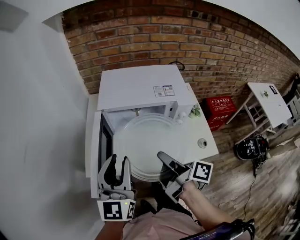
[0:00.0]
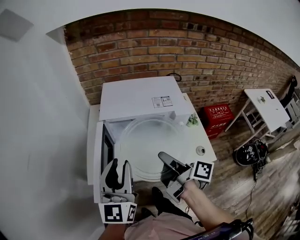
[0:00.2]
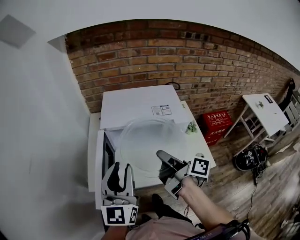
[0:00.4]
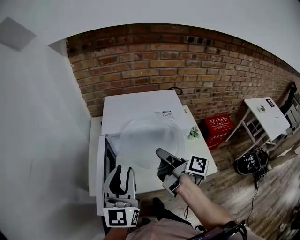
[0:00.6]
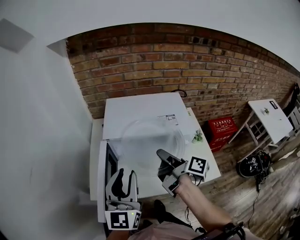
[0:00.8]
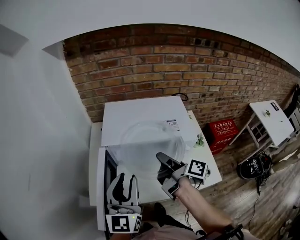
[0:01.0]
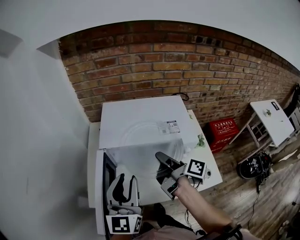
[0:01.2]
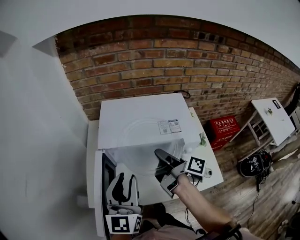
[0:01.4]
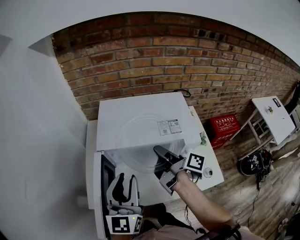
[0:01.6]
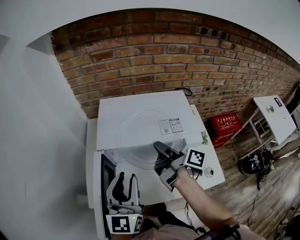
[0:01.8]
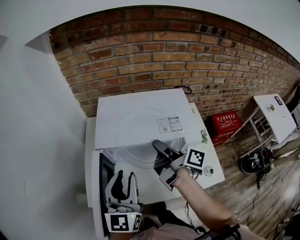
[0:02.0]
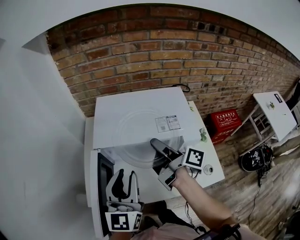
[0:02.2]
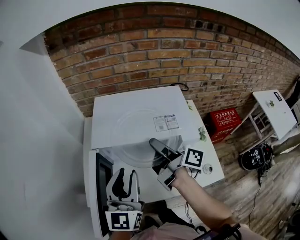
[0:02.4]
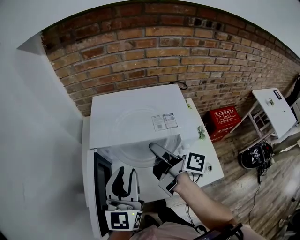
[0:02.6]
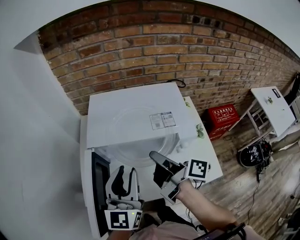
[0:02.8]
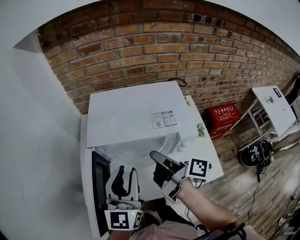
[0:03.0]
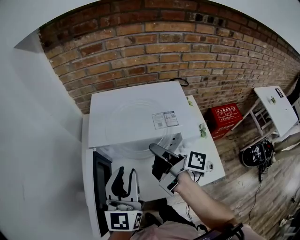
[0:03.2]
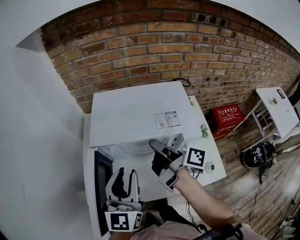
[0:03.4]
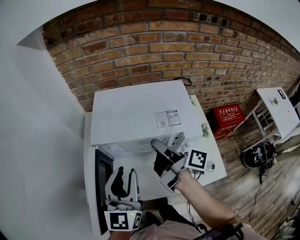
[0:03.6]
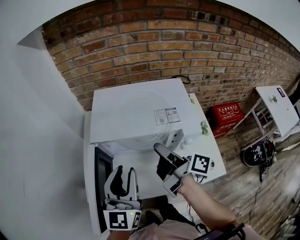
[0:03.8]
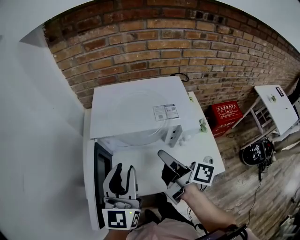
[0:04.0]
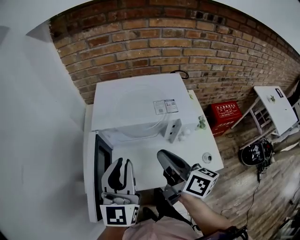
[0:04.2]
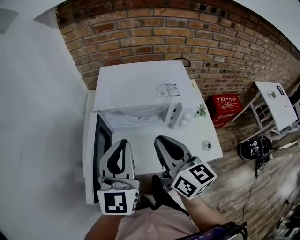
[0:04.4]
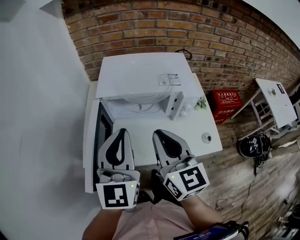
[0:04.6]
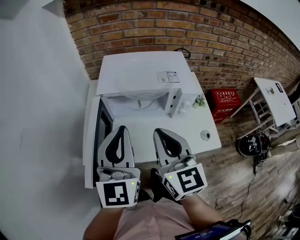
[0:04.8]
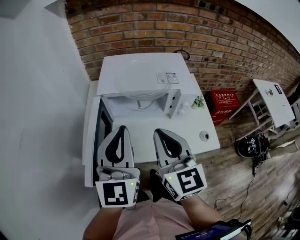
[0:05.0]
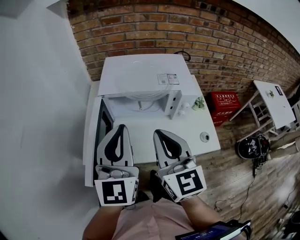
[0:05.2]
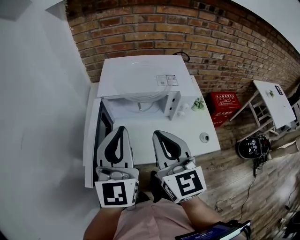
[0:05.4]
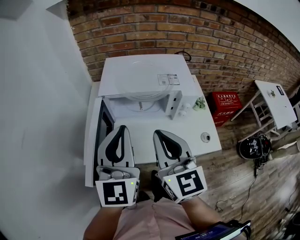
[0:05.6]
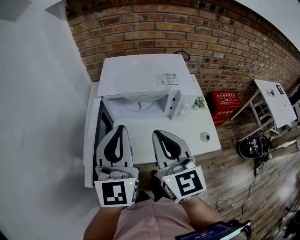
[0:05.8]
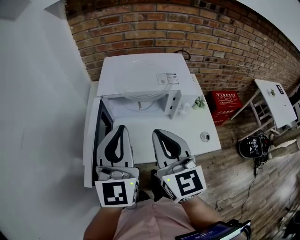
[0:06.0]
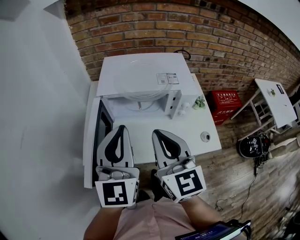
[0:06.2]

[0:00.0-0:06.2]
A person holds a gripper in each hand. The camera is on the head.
0:00.0 to 0:01.6: The right gripper is displaced forward by some 20 cm. The left gripper moves forward, about 10 cm.
0:01.6 to 0:03.2: The right gripper opens, then closes again.
0:03.2 to 0:04.6: The left gripper moves backward and upward, roughly 10 cm, and closes; the right gripper travels backward and upward by some 15 cm, twists roughly 80 degrees counterclockwise, seen from behind, and opens and closes again.
0:04.6 to 0:06.2: The grippers make only small movements.

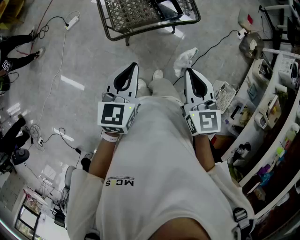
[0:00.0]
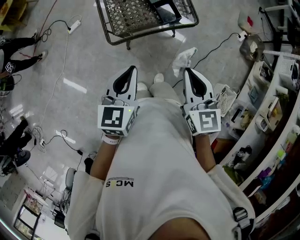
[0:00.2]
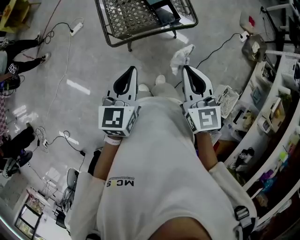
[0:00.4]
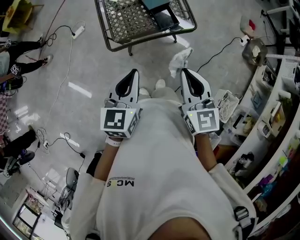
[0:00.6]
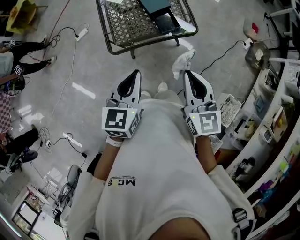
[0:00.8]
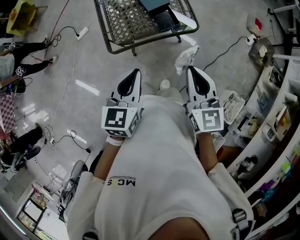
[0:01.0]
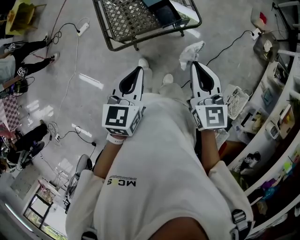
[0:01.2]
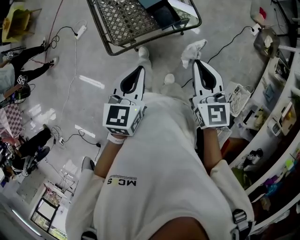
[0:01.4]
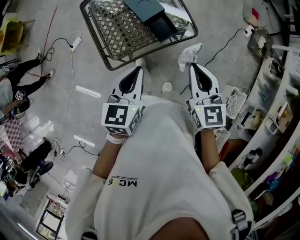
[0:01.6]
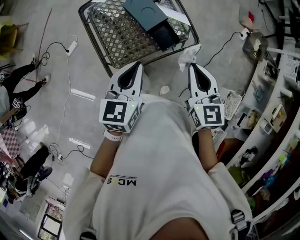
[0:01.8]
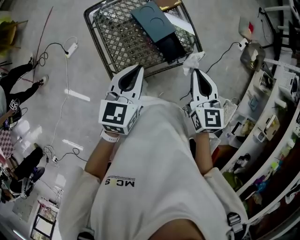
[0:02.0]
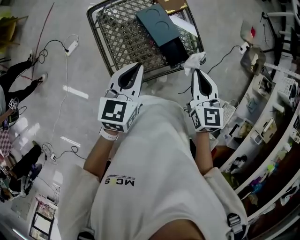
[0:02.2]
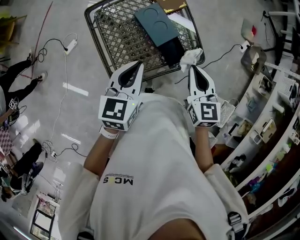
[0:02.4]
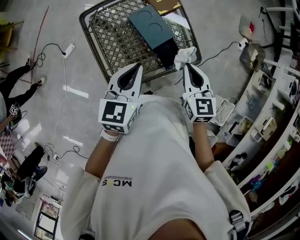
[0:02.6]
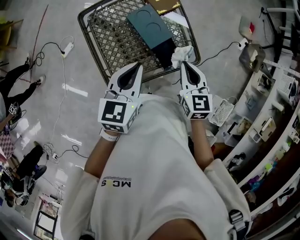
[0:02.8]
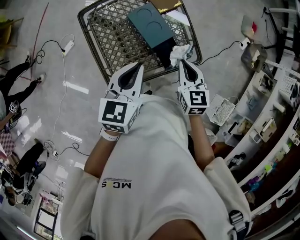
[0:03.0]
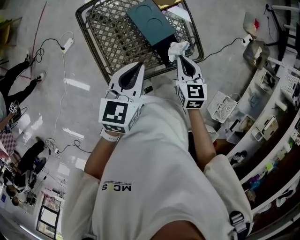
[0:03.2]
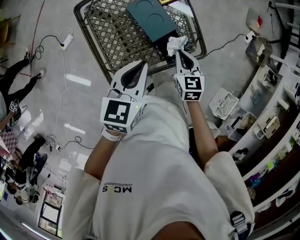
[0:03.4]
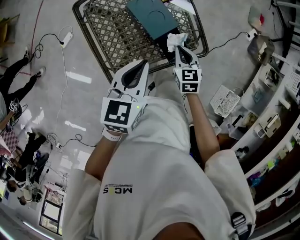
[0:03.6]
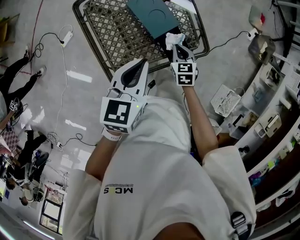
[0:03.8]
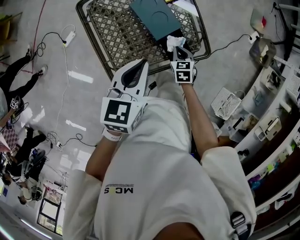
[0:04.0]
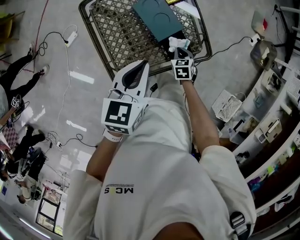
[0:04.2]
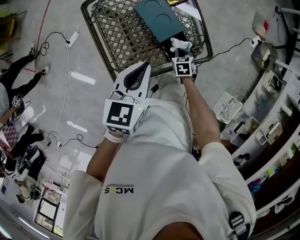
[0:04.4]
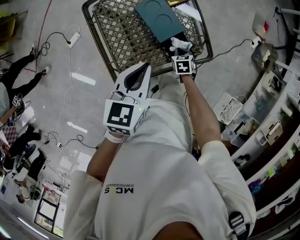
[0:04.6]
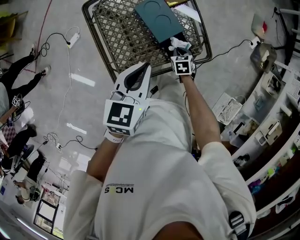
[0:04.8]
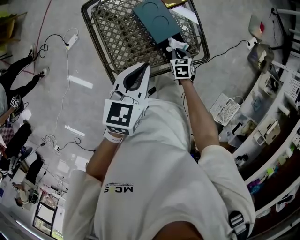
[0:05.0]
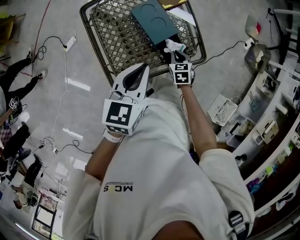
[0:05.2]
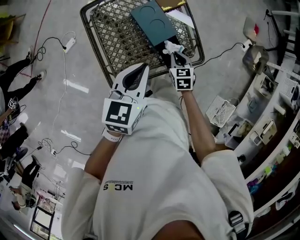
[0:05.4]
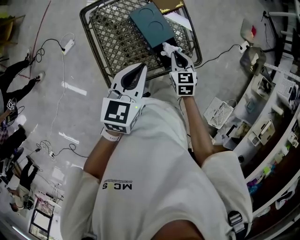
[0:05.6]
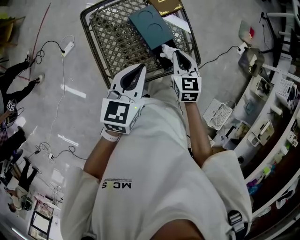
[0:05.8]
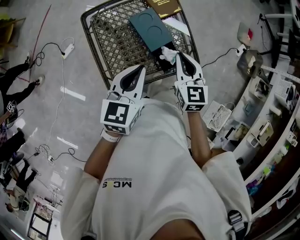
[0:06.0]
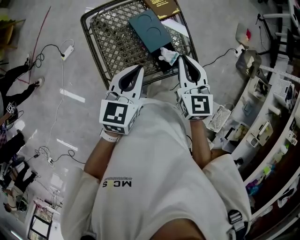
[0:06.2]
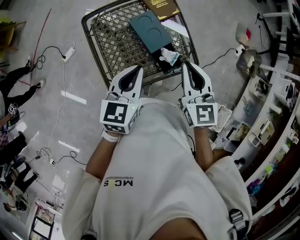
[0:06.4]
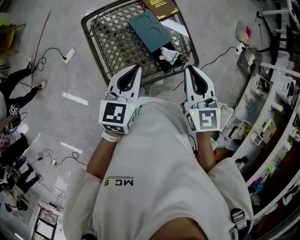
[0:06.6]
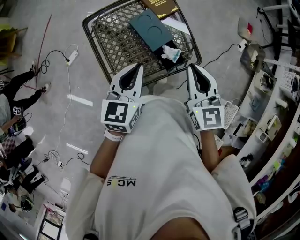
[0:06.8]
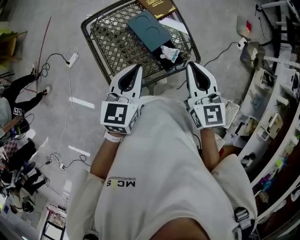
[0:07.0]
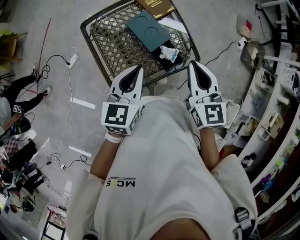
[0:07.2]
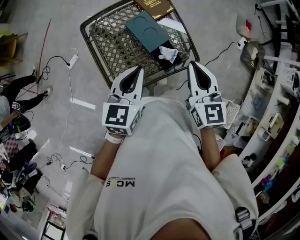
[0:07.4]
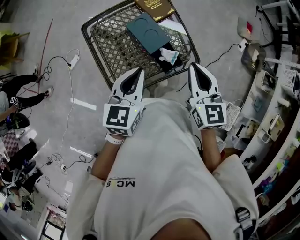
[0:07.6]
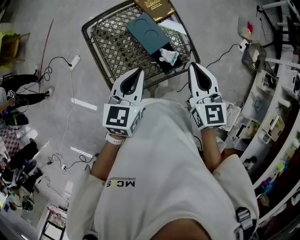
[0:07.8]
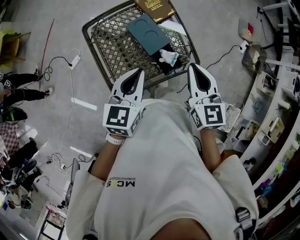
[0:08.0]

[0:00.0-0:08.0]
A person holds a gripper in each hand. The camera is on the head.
0:00.0 to 0:01.6: Both grippers travel together forward, some 15 cm.
0:01.6 to 0:03.2: The left gripper moves forward and to the left, approximately 20 cm; the right gripper goes about 25 cm forward, downward and to the left.
0:03.2 to 0:04.8: The right gripper goes about 20 cm downward, and rotates roughly 30 degrees.
0:04.8 to 0:06.4: The right gripper moves upward, about 40 cm, and tips its fingers upward by some 40 degrees.
0:06.4 to 0:08.0: There are only small adjustments of the grippers.

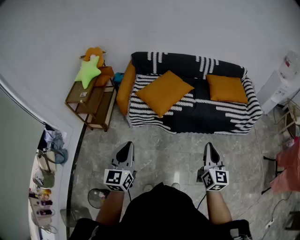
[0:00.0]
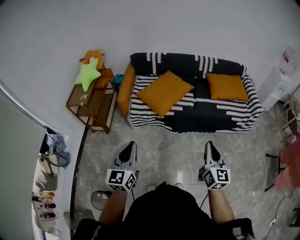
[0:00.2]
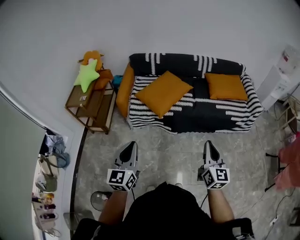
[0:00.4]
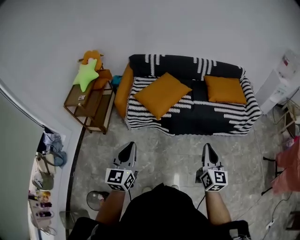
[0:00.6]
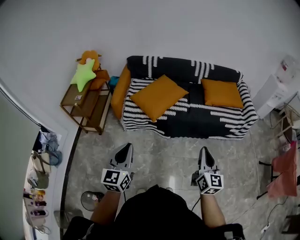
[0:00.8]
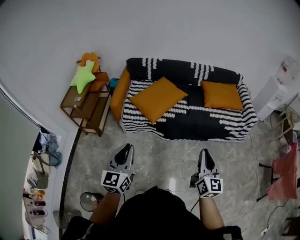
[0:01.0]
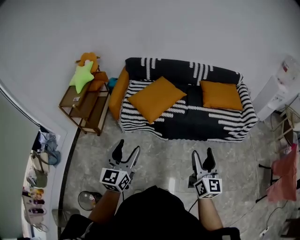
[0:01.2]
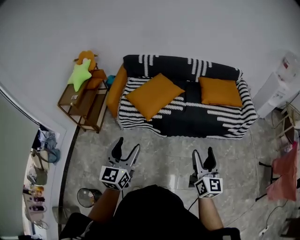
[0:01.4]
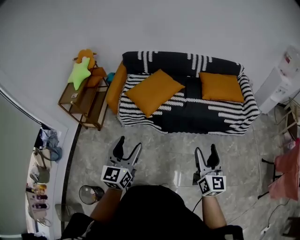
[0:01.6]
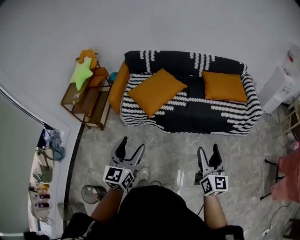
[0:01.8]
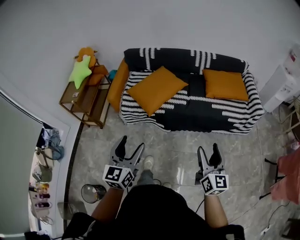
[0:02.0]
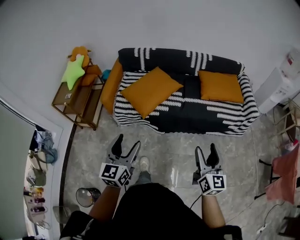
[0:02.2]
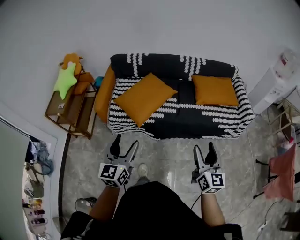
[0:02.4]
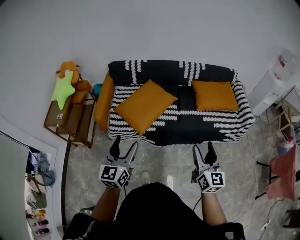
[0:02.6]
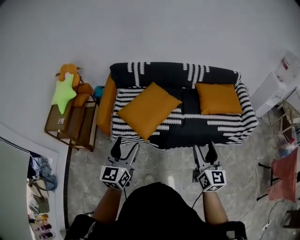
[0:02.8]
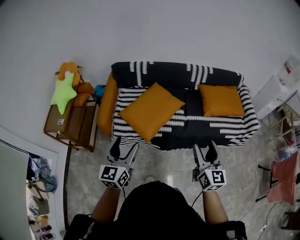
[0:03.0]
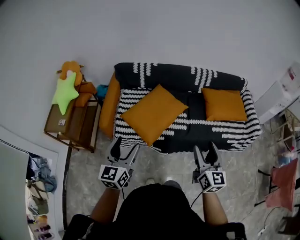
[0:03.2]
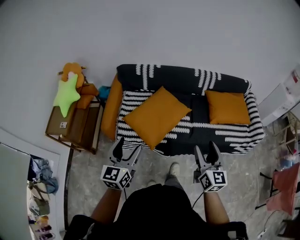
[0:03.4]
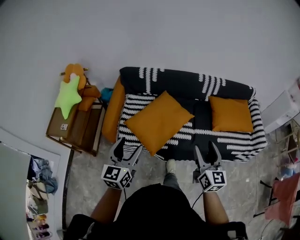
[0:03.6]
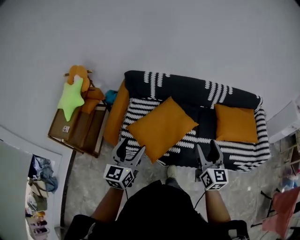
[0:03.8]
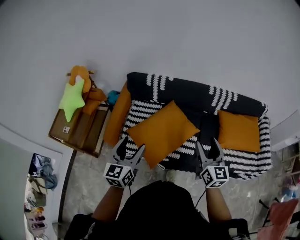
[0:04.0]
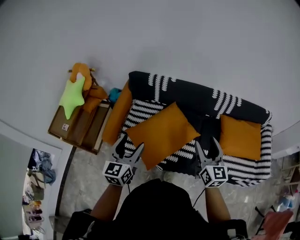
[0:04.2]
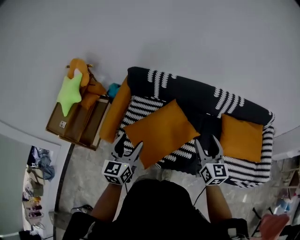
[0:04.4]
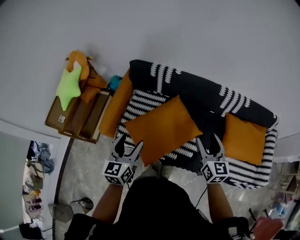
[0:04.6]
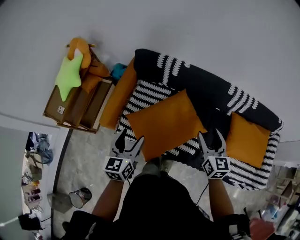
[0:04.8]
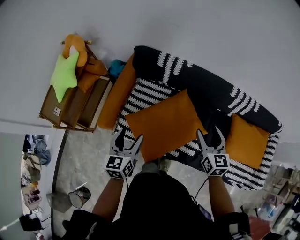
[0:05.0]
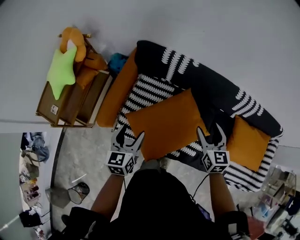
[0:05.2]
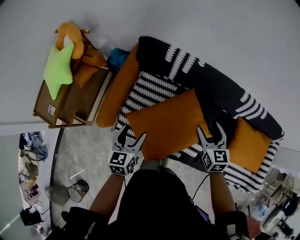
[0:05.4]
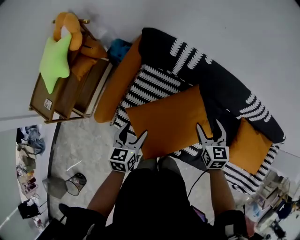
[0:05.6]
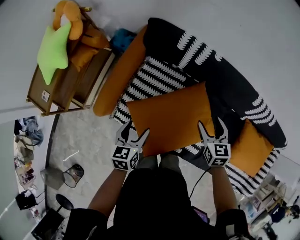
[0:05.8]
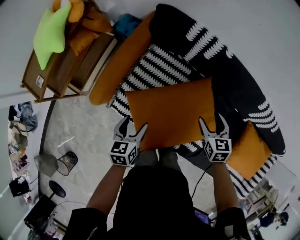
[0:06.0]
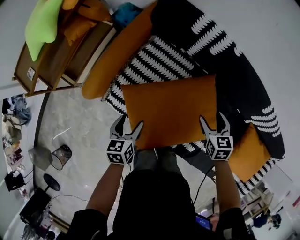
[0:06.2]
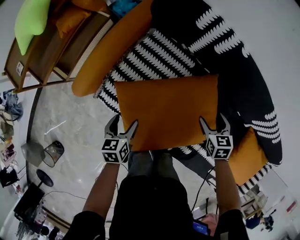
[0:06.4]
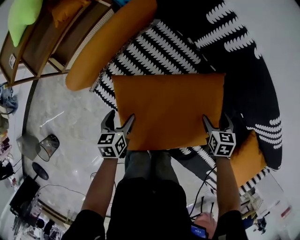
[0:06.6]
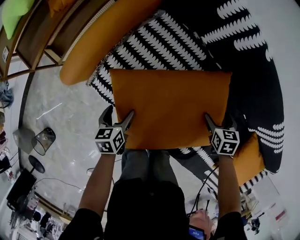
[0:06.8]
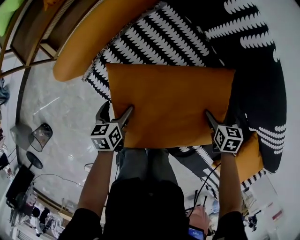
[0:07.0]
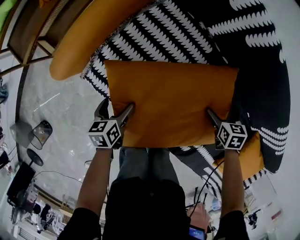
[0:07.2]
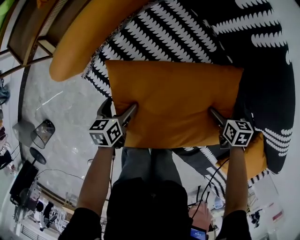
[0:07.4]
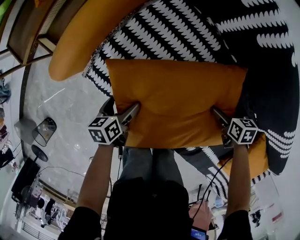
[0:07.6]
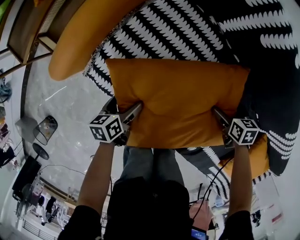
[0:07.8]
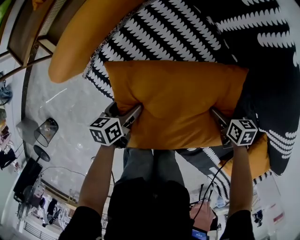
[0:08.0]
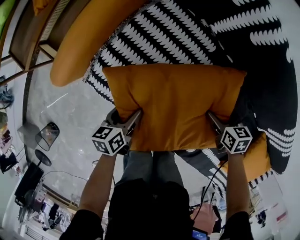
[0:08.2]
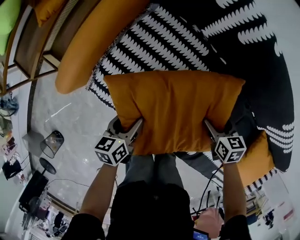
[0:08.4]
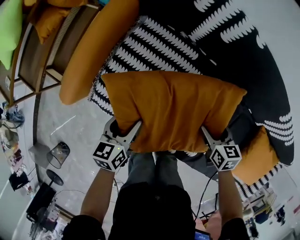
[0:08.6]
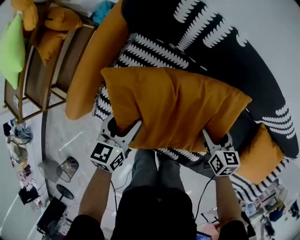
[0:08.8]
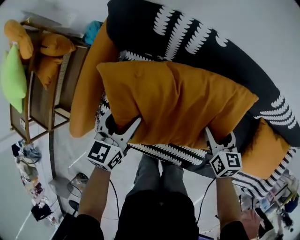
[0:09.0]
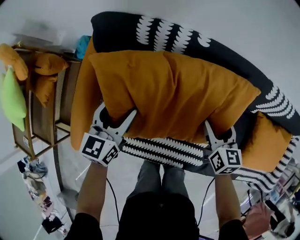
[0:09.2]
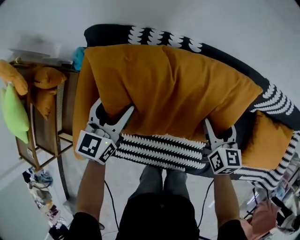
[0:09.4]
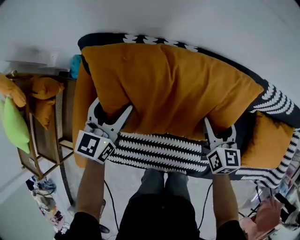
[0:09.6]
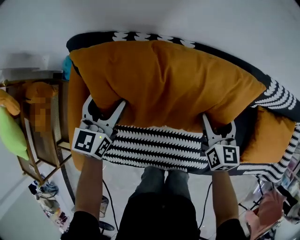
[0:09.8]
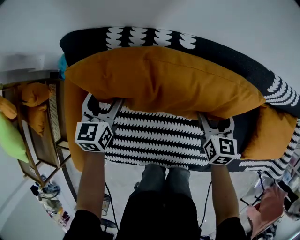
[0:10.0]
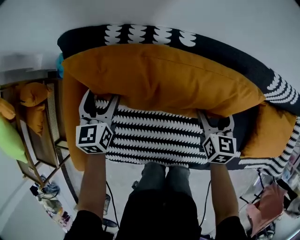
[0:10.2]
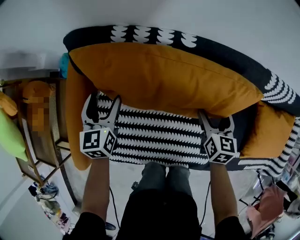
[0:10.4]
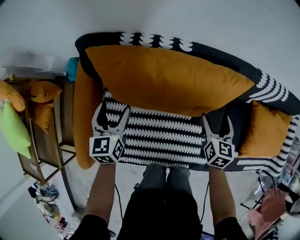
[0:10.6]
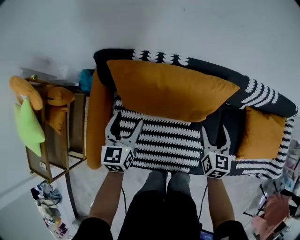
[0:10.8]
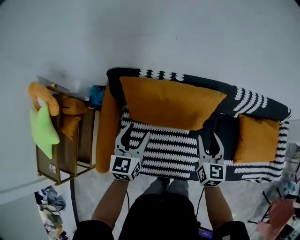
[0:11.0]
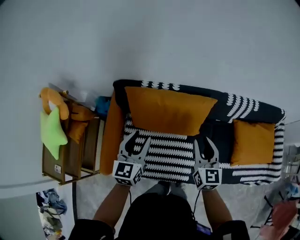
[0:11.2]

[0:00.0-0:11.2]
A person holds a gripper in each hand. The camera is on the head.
0:00.0 to 0:01.6: Both grippers travel together to the right, some 15 cm. The left gripper opens its fingers; the right gripper opens its fingers.
0:01.6 to 0:03.2: Both grippers travel together forward and to the left, about 30 cm.
0:03.2 to 0:04.8: The left gripper is displaced forward by approximately 25 cm, and turns by roughly 20 degrees. The right gripper shifts approximately 40 cm forward, and changes its angle by approximately 30 degrees.
0:04.8 to 0:06.4: The right gripper goes about 35 cm downward and forward, and angles its fingers downward, by roughly 40 degrees. The left gripper moves downward, approximately 35 cm, and rotates some 40 degrees.
0:06.4 to 0:08.0: The two grippers go approximately 15 cm downward. The right gripper changes its angle by roughly 20 degrees, and opens up. Meanwhile the left gripper changes its angle by about 20 degrees.
0:08.0 to 0:09.6: The left gripper shifts by approximately 40 cm, and rolls clockwise, seen from behind, by about 60 degrees. Meanwhile the right gripper is displaced upward by roughly 20 cm, and tips its fingers upward by about 40 degrees.
0:09.6 to 0:11.2: Both grippers move upward and backward, about 25 cm. The right gripper closes its fingers.
